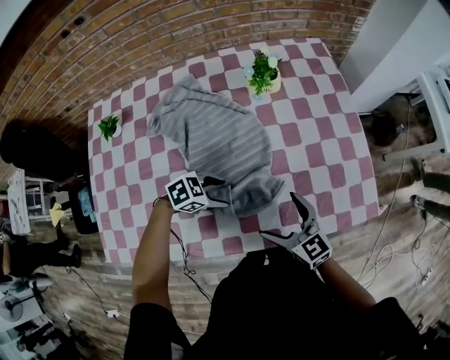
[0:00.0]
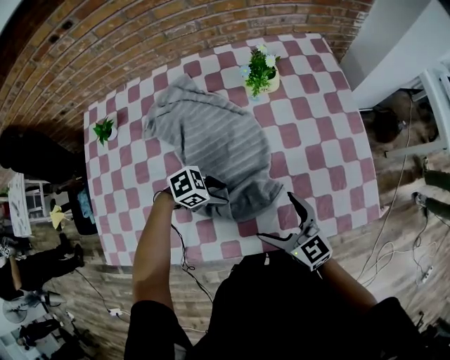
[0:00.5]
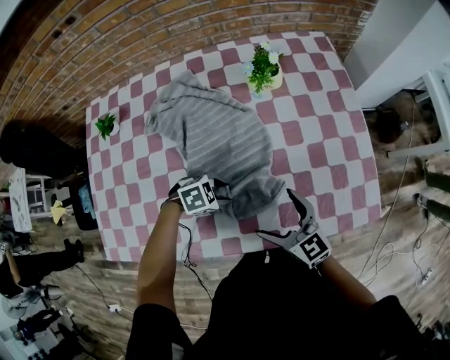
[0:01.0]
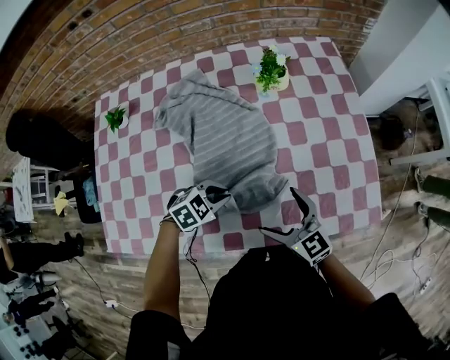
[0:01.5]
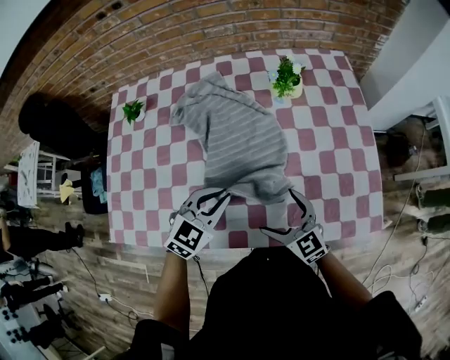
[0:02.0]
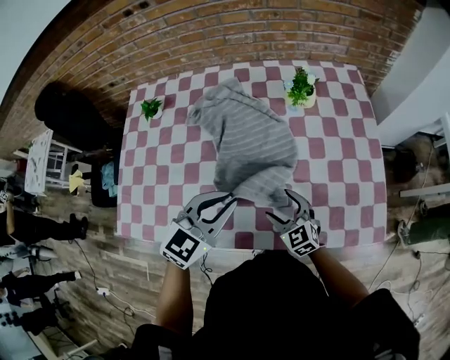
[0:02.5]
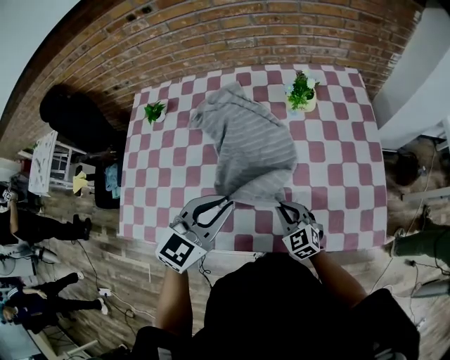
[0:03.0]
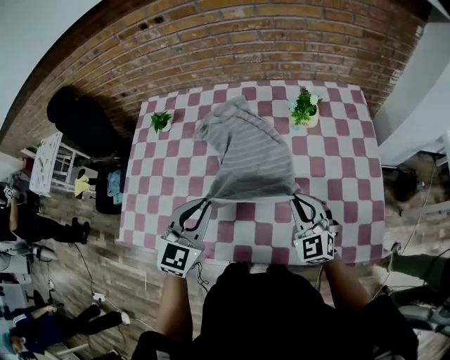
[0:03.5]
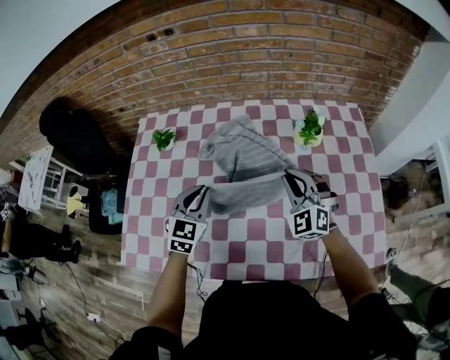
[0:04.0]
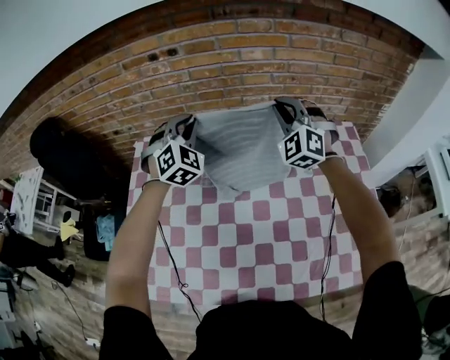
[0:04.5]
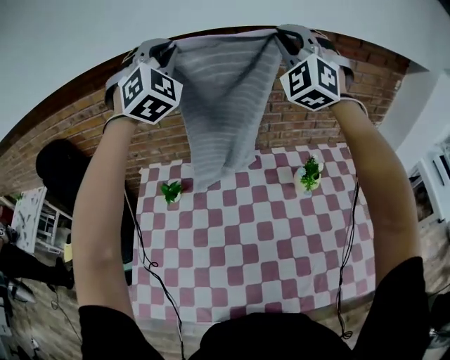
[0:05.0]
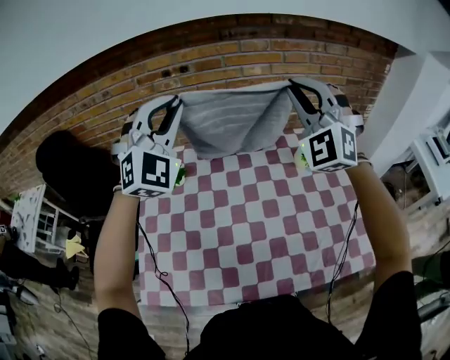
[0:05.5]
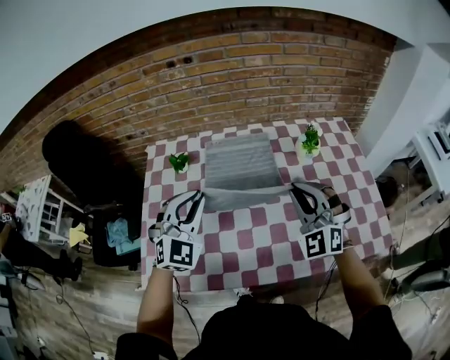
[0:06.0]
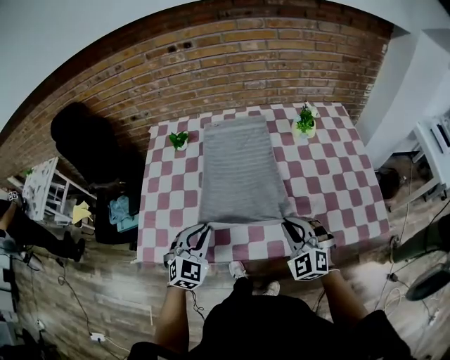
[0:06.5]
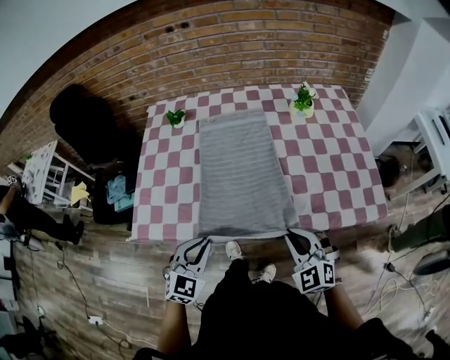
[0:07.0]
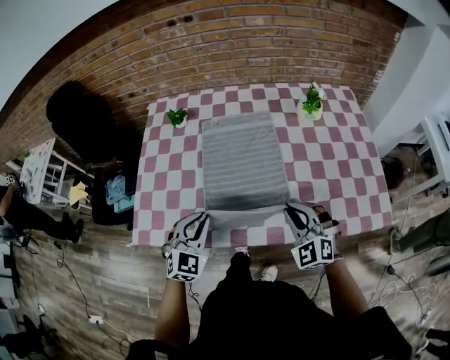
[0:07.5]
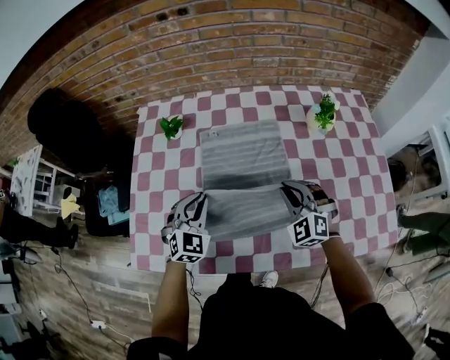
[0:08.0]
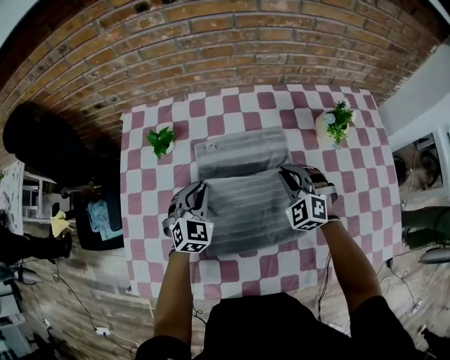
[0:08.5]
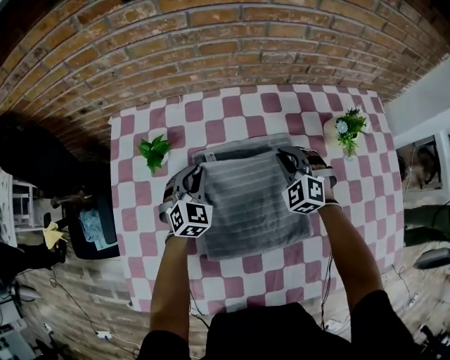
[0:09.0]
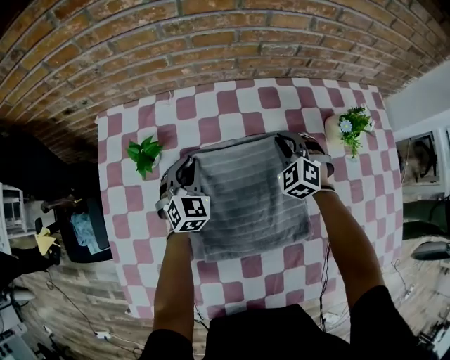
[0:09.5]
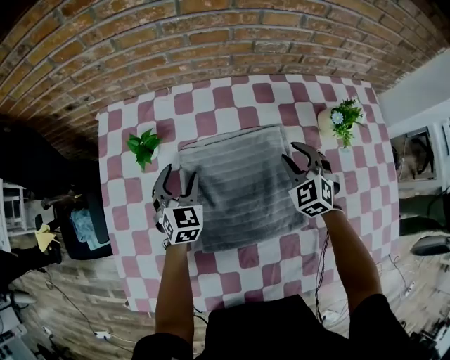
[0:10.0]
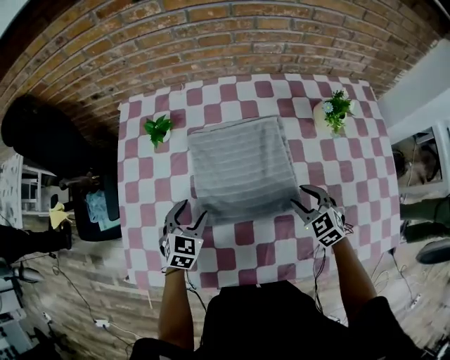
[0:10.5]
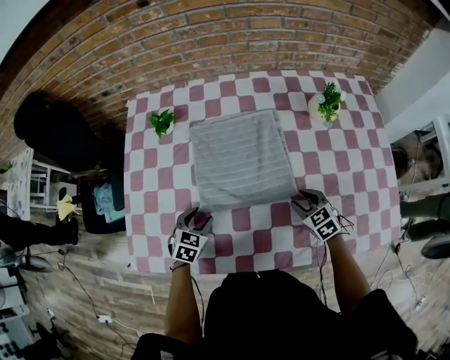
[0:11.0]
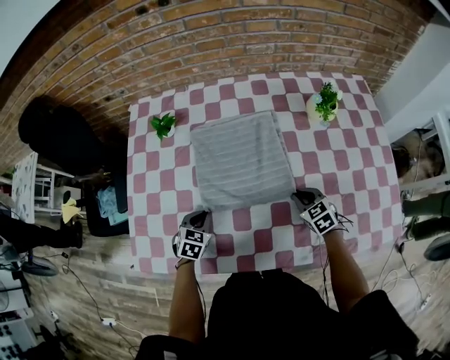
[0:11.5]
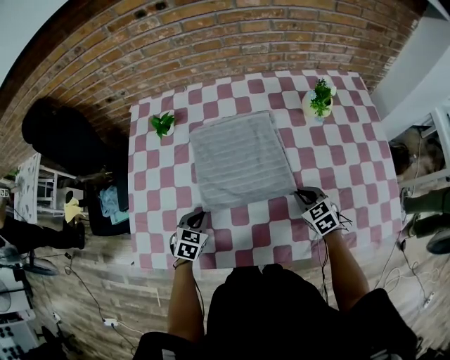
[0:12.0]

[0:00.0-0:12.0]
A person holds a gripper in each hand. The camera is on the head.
0:00.0 to 0:02.0: The left gripper is displaced upward by approximately 15 cm, turns by approximately 50 degrees, and closes.
0:02.0 to 0:04.0: The left gripper goes roughly 20 cm to the left and forward, and rotates approximately 30 degrees; the right gripper heads forward and upward, covering some 20 cm, twists about 40 degrees counterclockwise, seen from behind, and closes its fingers.
0:04.0 to 0:06.0: The left gripper heads to the left, covering approximately 10 cm, moves roughly 50 cm upward and comes back, and swivels roughly 30 degrees. Meanwhile the right gripper shifts about 15 cm backward and to the left, and moves about 40 cm upward and comes back.
0:06.0 to 0:08.0: The grippers both shift downward by approximately 20 cm. The left gripper moves approximately 25 cm backward and comes back, and swivels about 20 degrees. The right gripper travels backward and back again, some 25 cm each way.
0:08.0 to 0:10.0: The left gripper goes some 25 cm forward and downward, and opens its fingers. Meanwhile the right gripper moves forward, roughly 20 cm.
0:10.0 to 0:12.0: Both grippers travel together backward, approximately 25 cm. The left gripper rotates some 20 degrees, and closes its fingers, while the right gripper turns by roughly 30 degrees.

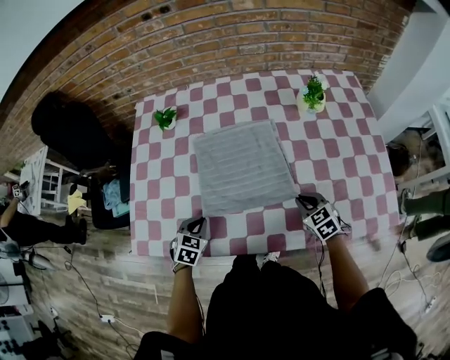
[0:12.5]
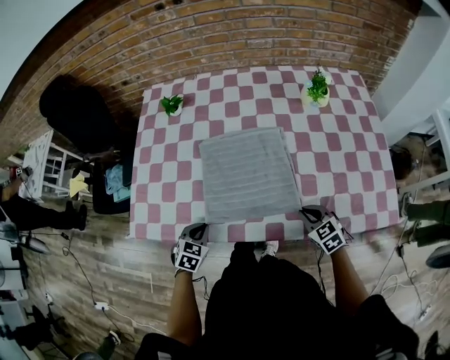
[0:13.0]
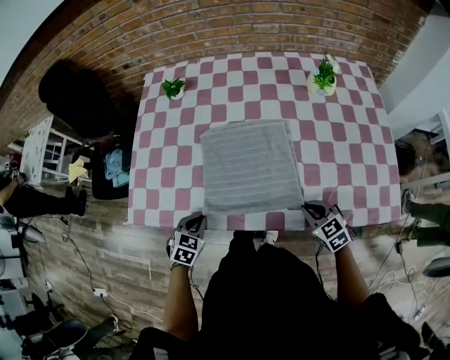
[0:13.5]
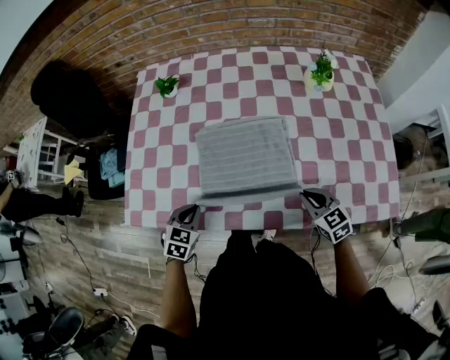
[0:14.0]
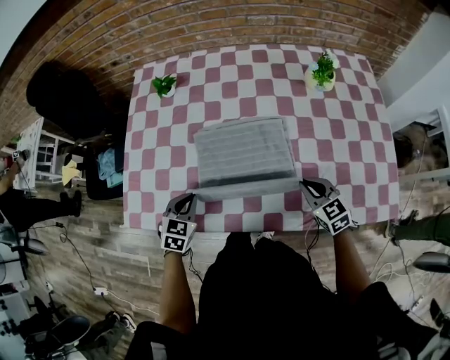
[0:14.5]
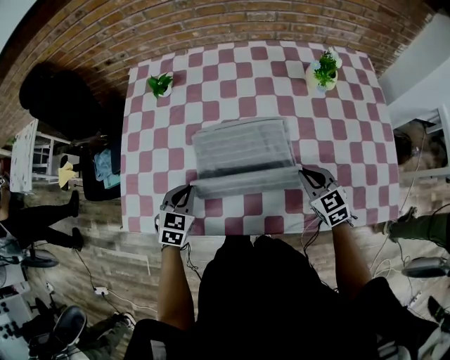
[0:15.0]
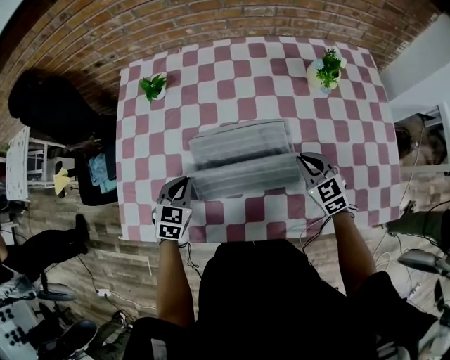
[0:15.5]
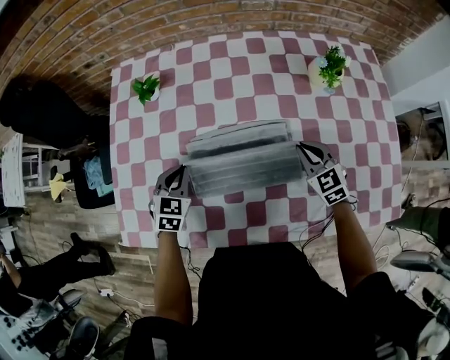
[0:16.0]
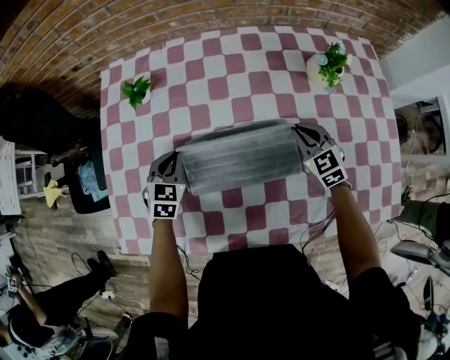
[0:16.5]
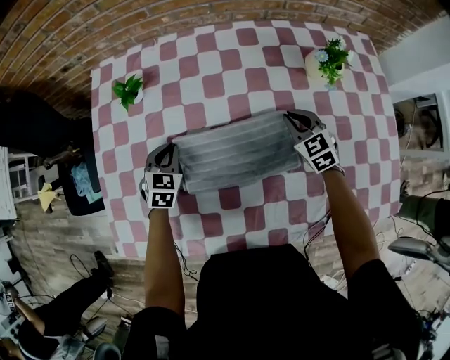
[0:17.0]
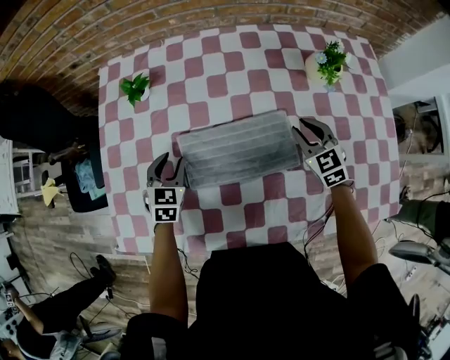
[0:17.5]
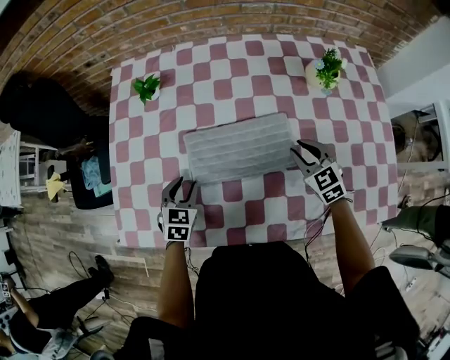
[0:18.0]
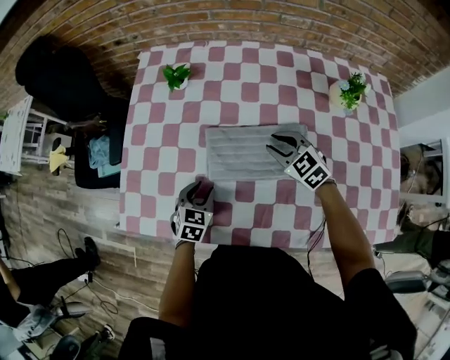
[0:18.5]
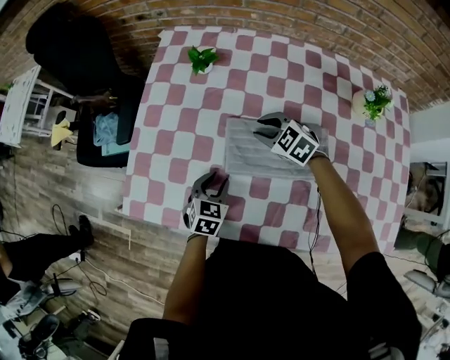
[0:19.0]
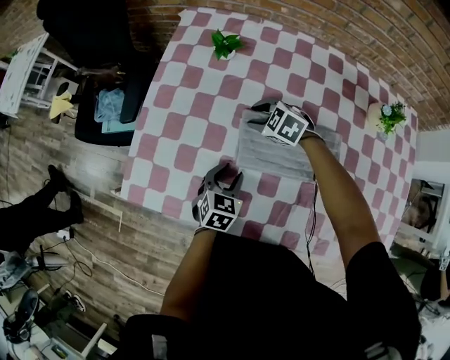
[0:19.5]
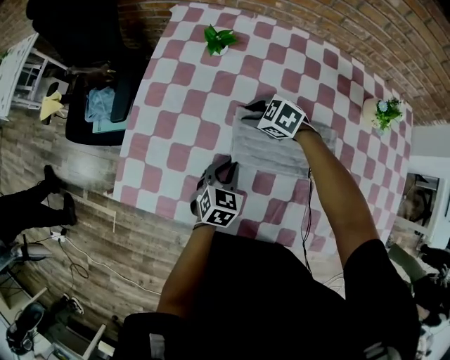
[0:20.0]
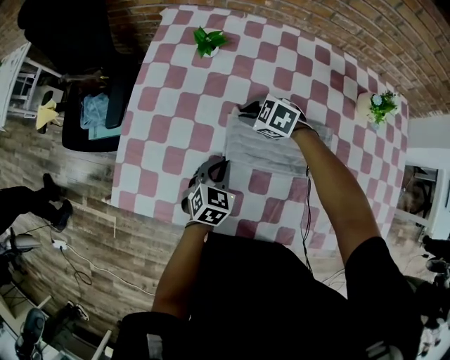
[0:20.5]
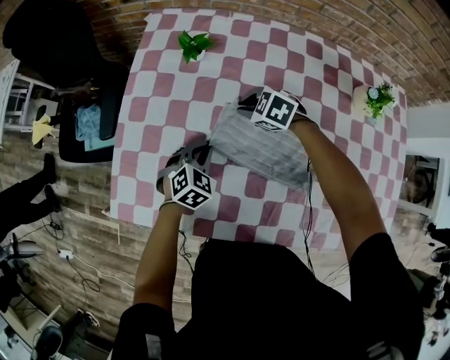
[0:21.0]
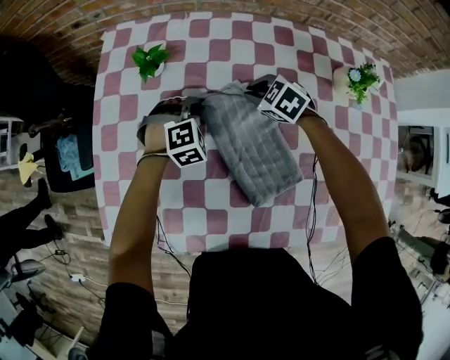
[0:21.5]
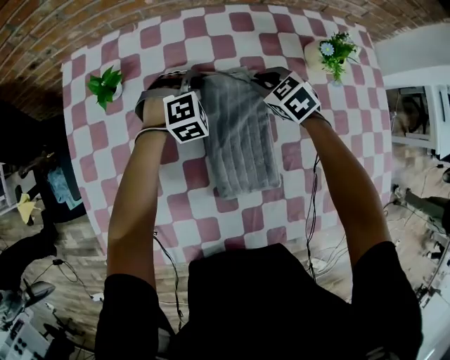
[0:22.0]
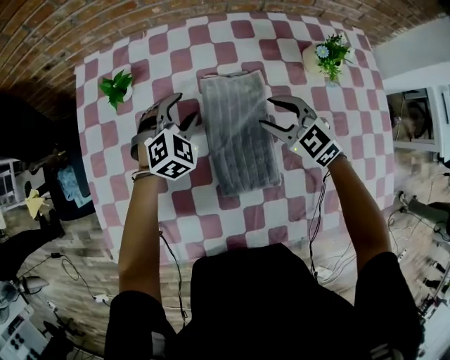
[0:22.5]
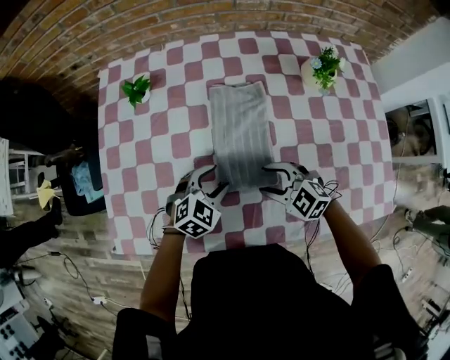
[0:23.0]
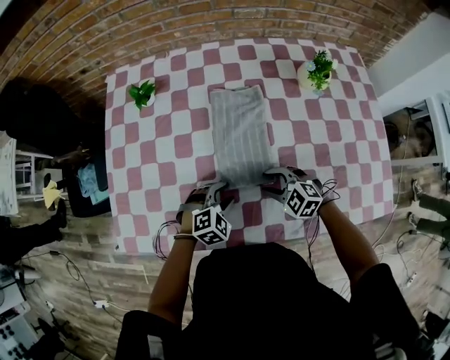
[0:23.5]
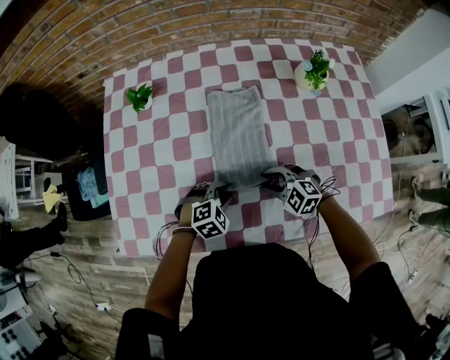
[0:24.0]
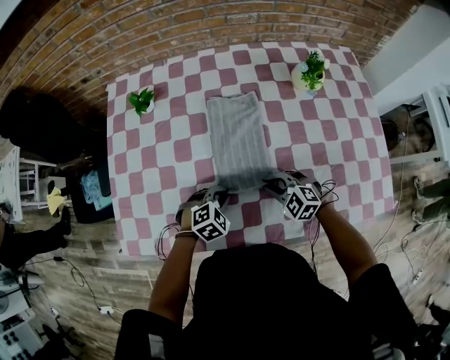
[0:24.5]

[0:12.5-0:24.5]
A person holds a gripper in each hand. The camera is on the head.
0:12.5 to 0:14.5: The right gripper reaches approximately 10 cm backward, then returns. The left gripper goes backward and returns, about 10 cm each way.
0:14.5 to 0:16.5: Both grippers move forward, roughly 20 cm.
0:16.5 to 0:18.5: The right gripper is displaced to the left by some 15 cm, and rotates some 20 degrees, while the left gripper goes about 15 cm backward.
0:18.5 to 0:20.5: The right gripper moves to the left, forward and downward, approximately 20 cm, and rotates some 30 degrees.
0:20.5 to 0:22.5: The left gripper ends up roughly 25 cm from where it was, twists some 40 degrees clockwise, seen from behind, and opens its fingers. Meanwhile the right gripper shifts by approximately 25 cm, and changes its angle by approximately 40 degrees.
0:22.5 to 0:24.5: The grippers both shift backward by some 25 cm. The left gripper turns by about 20 degrees, and closes its fingers.

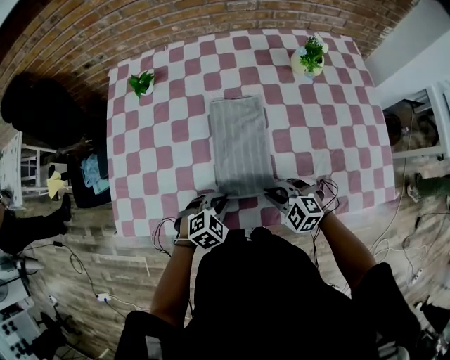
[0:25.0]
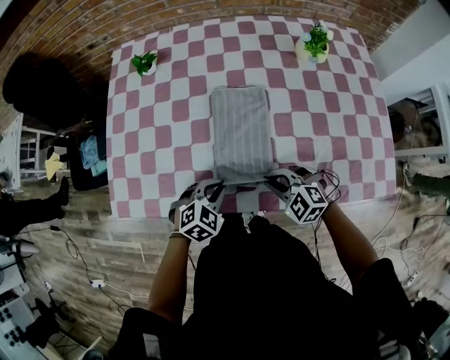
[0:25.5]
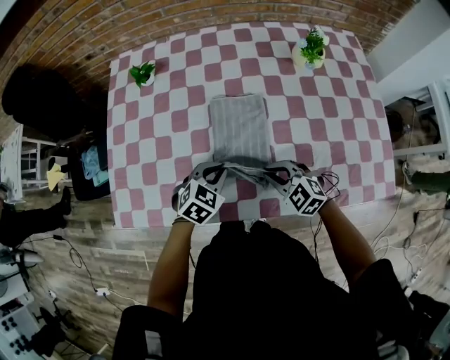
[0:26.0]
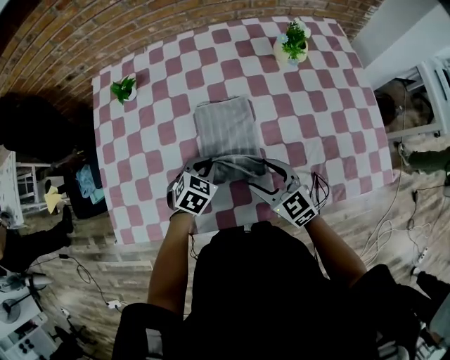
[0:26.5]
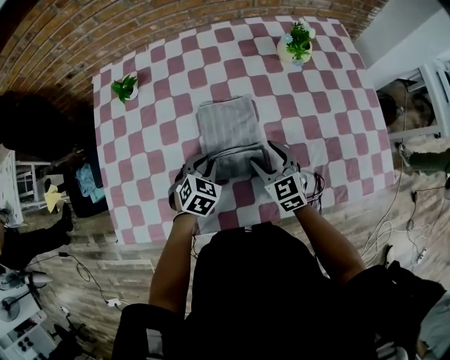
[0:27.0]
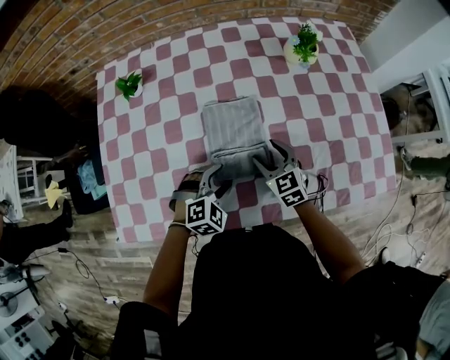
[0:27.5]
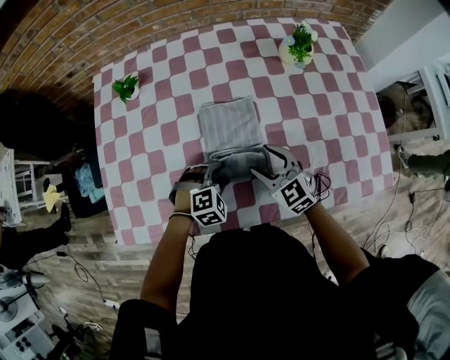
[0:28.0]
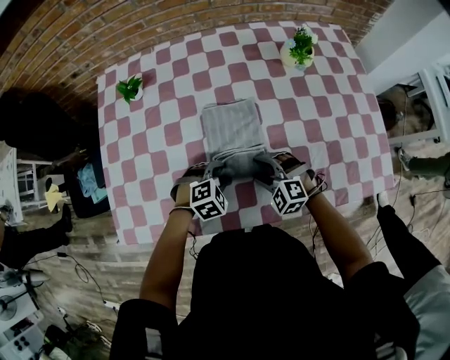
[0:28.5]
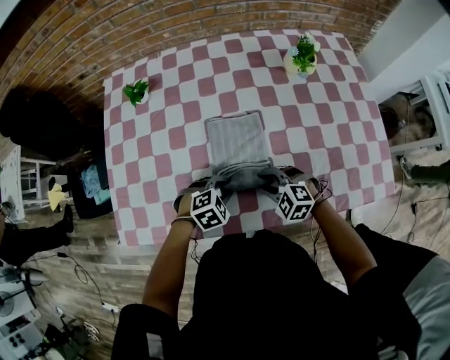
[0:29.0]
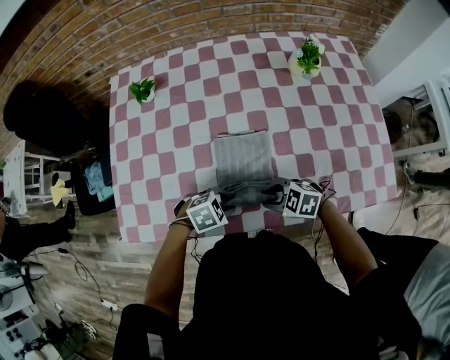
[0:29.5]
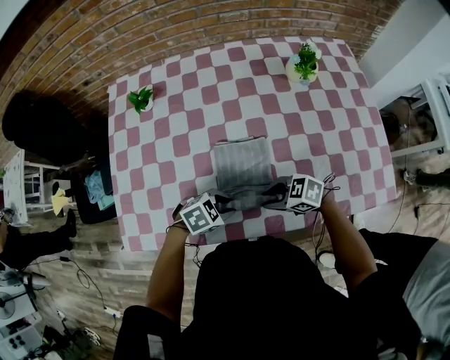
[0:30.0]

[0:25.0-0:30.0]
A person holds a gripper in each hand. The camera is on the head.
0:25.0 to 0:27.5: The right gripper moves forward, roughly 15 cm, turns by some 50 degrees, and opens up; the left gripper travels forward by roughly 5 cm, and opens its fingers.
0:27.5 to 0:30.0: The right gripper ends up roughly 10 cm from where it was, and changes its angle by about 60 degrees, while the left gripper changes place by roughly 5 cm, and swivels some 30 degrees.
